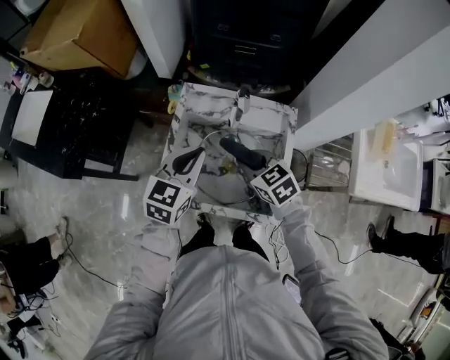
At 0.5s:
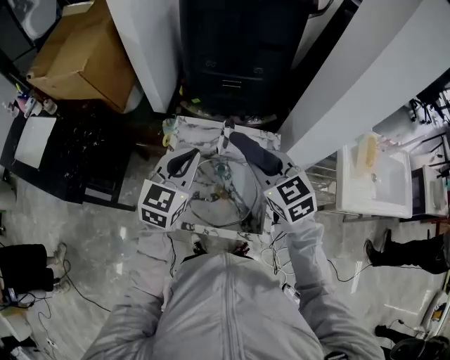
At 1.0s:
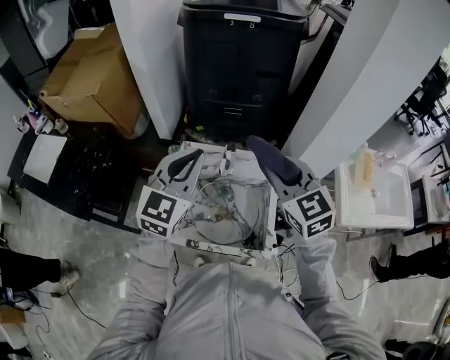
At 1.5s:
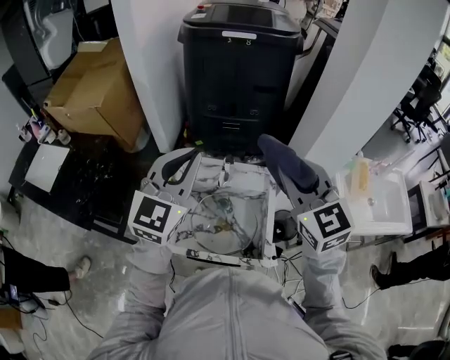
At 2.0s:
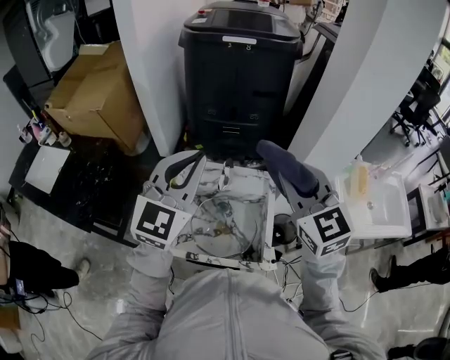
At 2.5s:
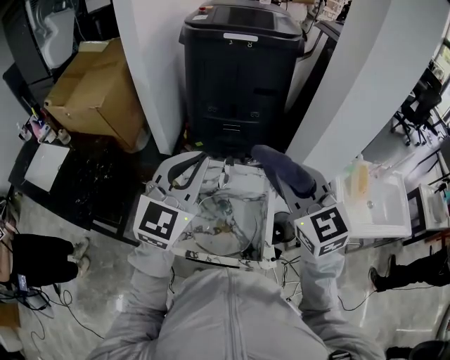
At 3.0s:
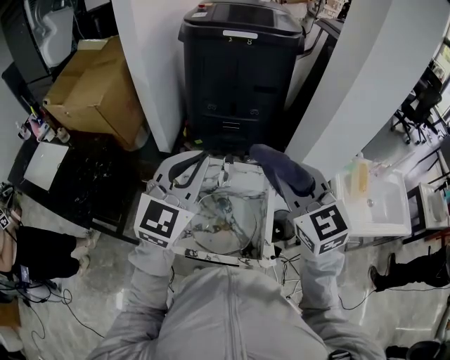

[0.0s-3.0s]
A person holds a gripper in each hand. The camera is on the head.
0.0s to 1.5s: Both grippers move upward, approximately 30 cm. The right gripper points its fingers some 30 degrees further upward, while the left gripper swivels approximately 30 degrees.
1.5s to 3.0s: There are only small adjustments of the grippers.

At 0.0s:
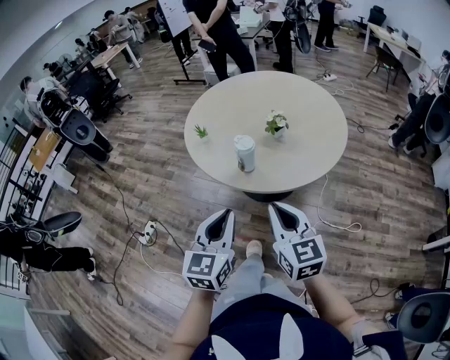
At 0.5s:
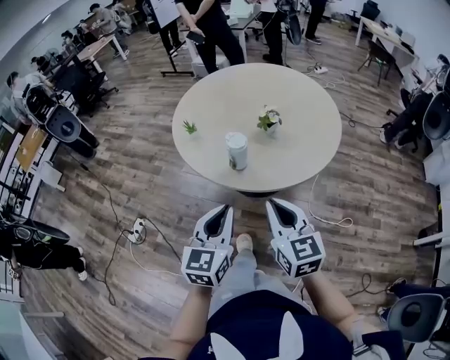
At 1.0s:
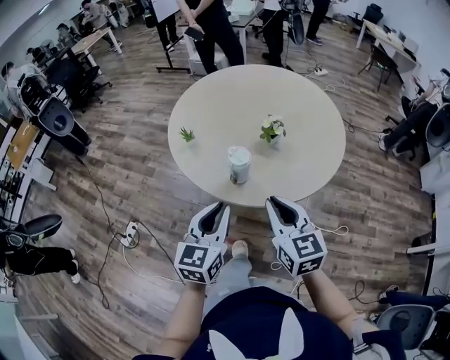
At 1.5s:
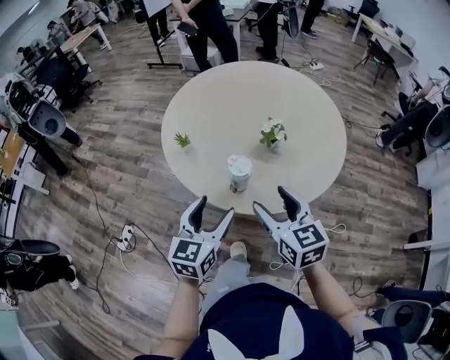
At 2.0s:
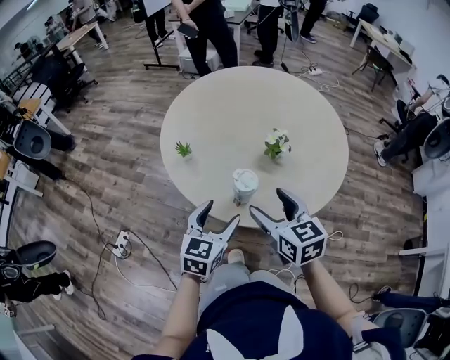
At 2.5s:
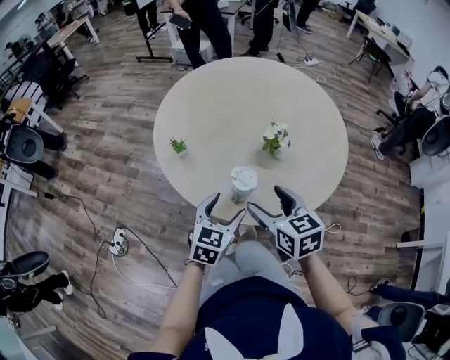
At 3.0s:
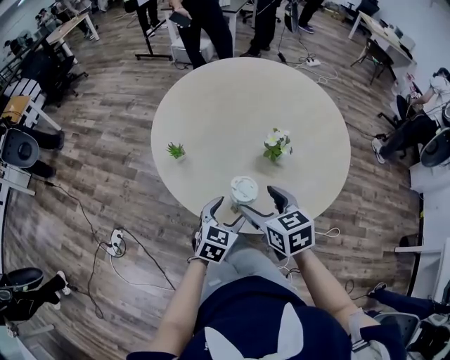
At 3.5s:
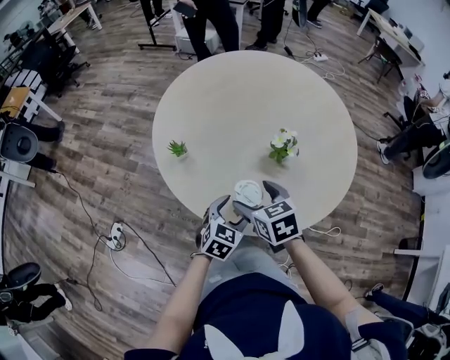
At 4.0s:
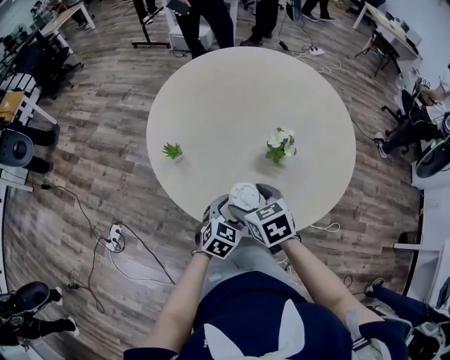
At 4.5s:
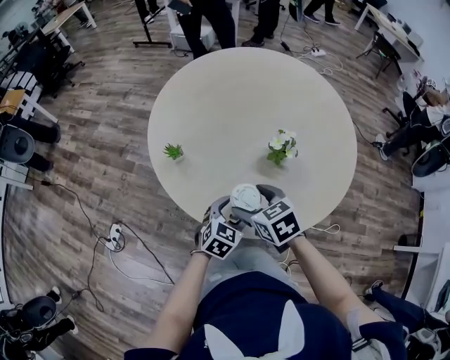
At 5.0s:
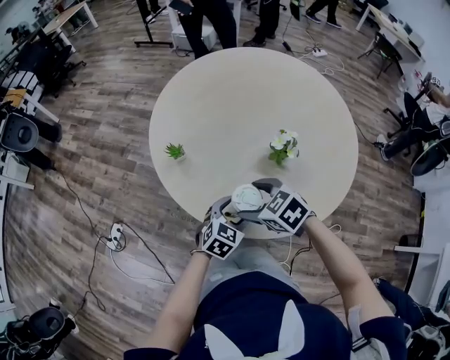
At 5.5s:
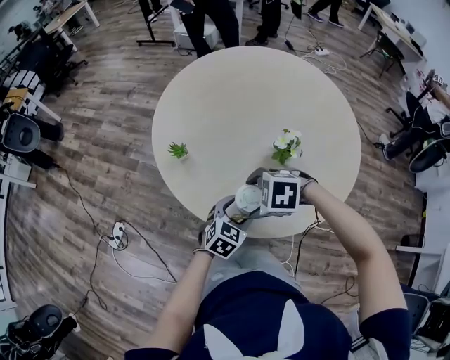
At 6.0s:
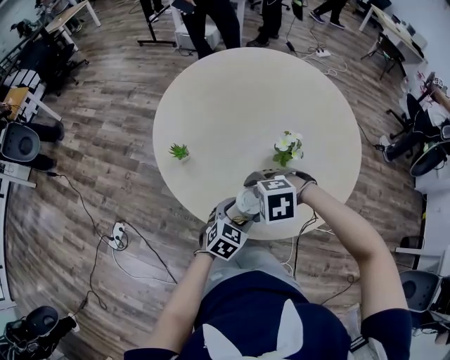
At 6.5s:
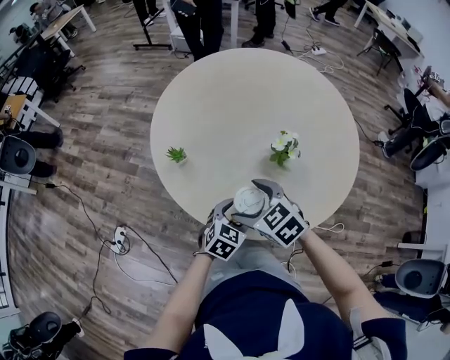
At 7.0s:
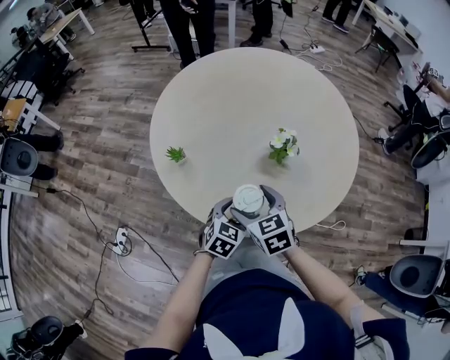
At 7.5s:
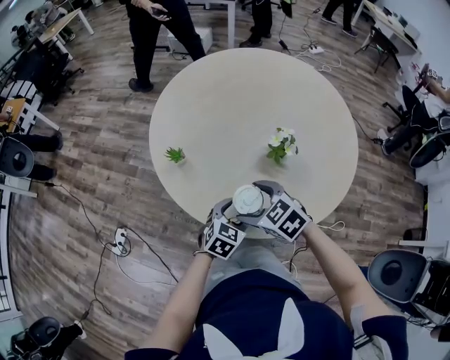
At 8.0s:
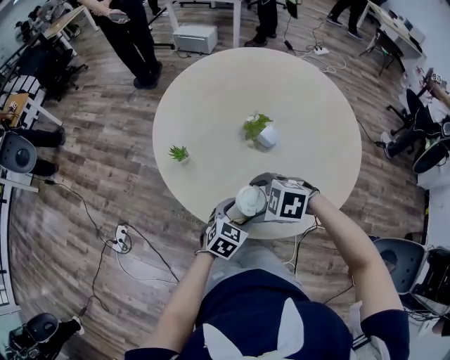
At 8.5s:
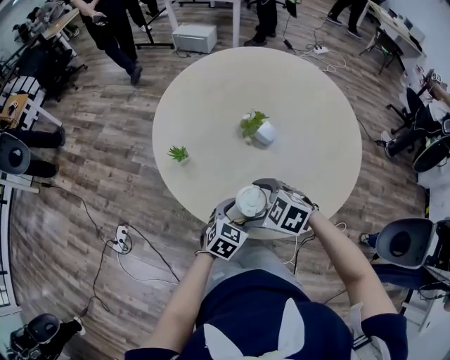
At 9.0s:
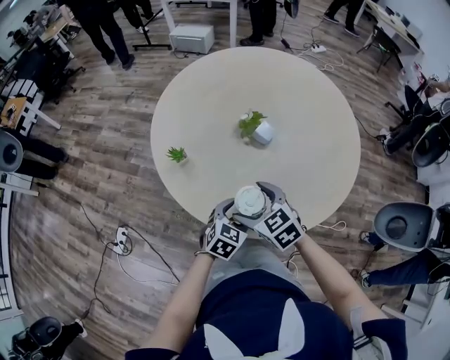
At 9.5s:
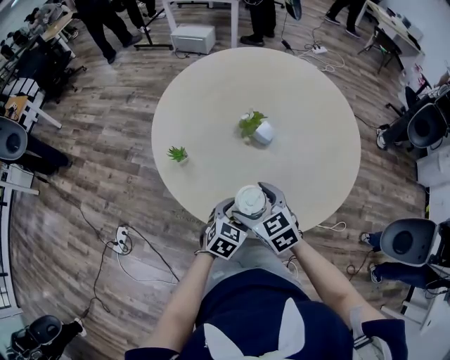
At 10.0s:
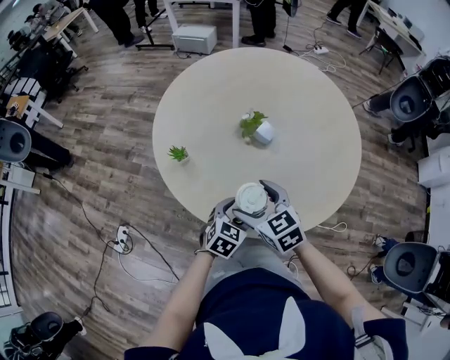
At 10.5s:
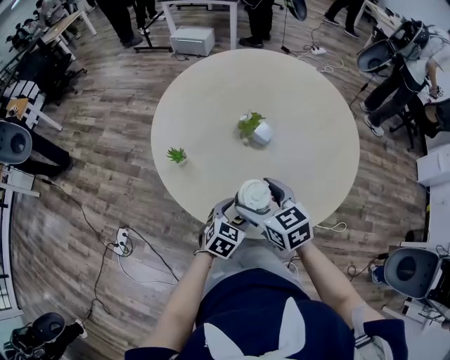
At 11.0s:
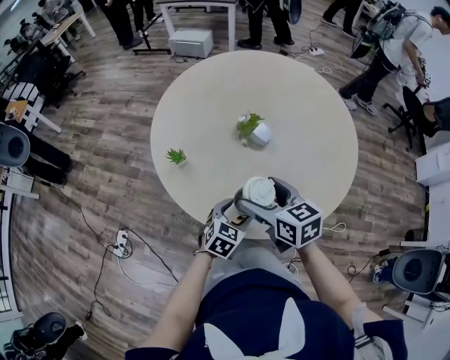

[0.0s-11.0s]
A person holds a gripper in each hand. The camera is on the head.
0.0s to 2.0s: The right gripper travels forward by some 25 cm, and opens, while the left gripper heads forward and downward, covering about 25 cm, and opens up.
2.0s to 3.5s: Both grippers travel together downward and forward, roughly 15 cm.
3.5s to 5.5s: The right gripper rotates some 70 degrees.
5.5s to 7.5s: The right gripper swivels about 40 degrees.
9.0s to 11.0s: The right gripper travels upward by roughly 5 cm, and changes its angle by some 30 degrees.

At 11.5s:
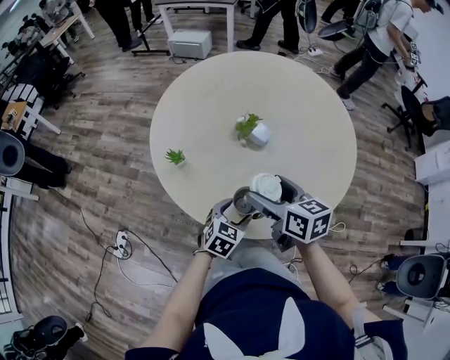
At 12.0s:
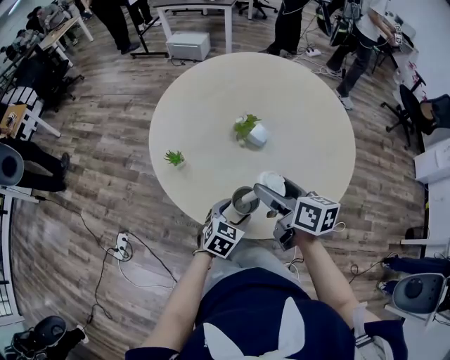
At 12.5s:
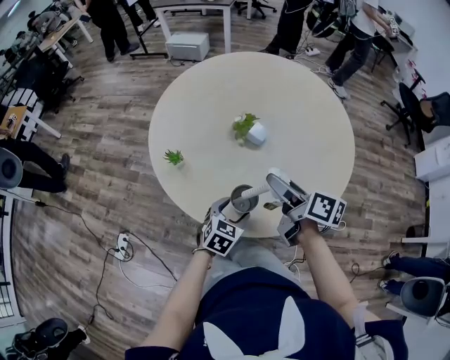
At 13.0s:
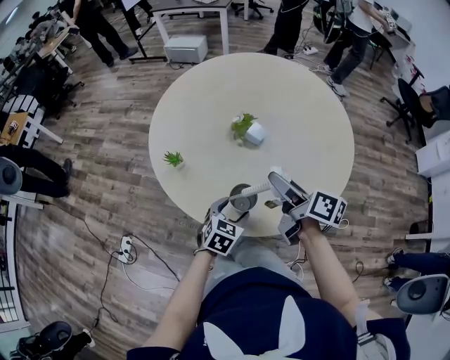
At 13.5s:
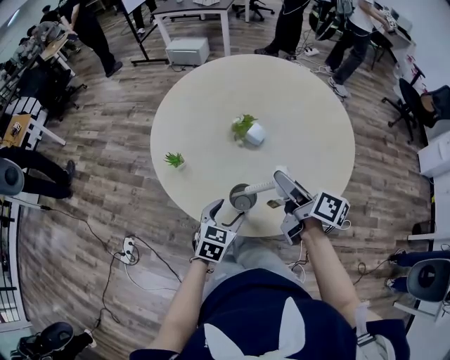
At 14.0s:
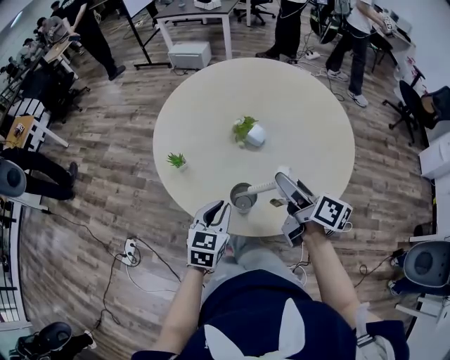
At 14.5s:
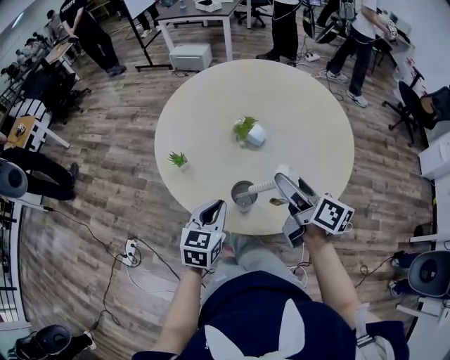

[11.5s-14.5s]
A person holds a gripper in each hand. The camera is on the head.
11.5s to 13.0s: The right gripper travels to the right by some 5 cm, and changes its angle by approximately 30 degrees.
13.0s to 14.5s: The left gripper travels upward and to the left by about 10 cm, changes its angle by approximately 20 degrees, and closes.

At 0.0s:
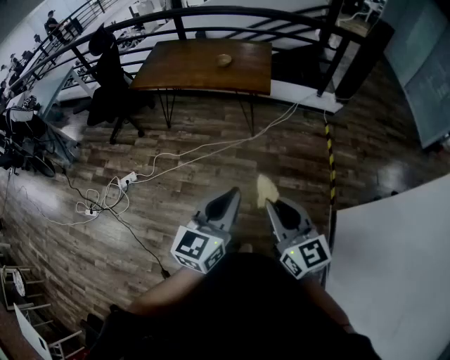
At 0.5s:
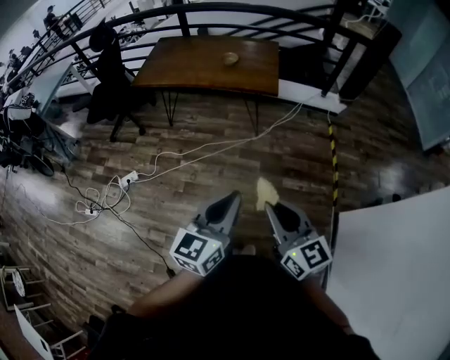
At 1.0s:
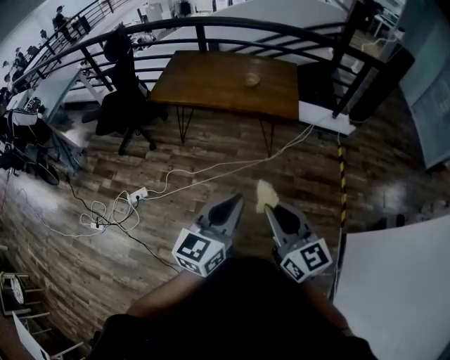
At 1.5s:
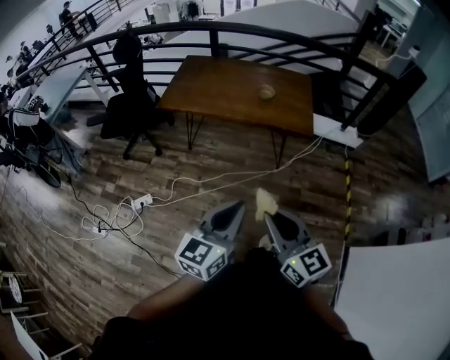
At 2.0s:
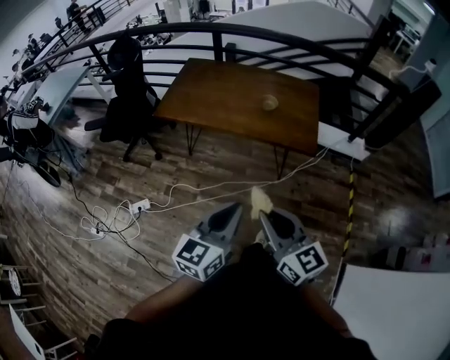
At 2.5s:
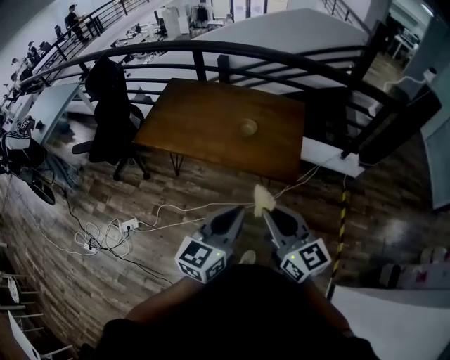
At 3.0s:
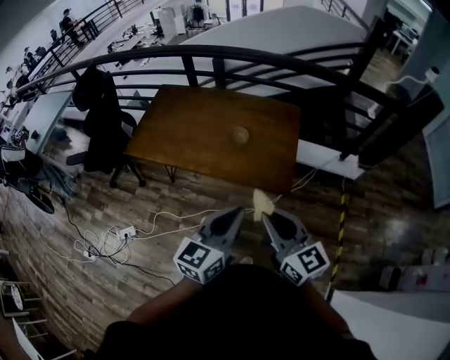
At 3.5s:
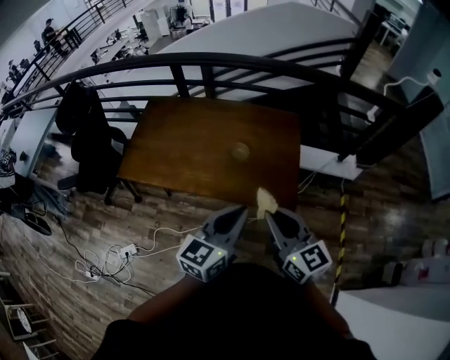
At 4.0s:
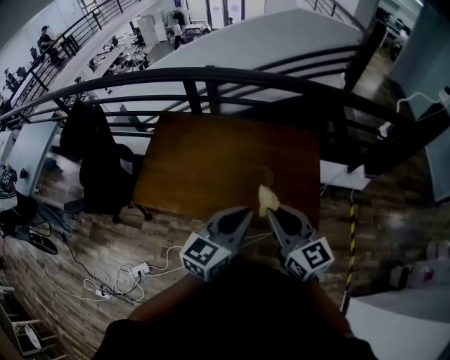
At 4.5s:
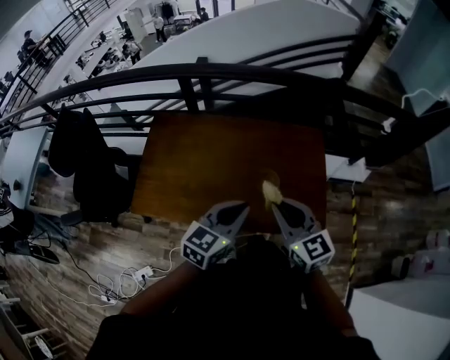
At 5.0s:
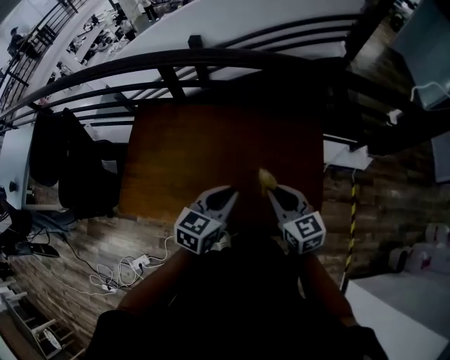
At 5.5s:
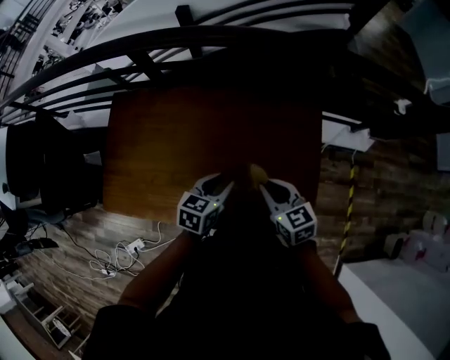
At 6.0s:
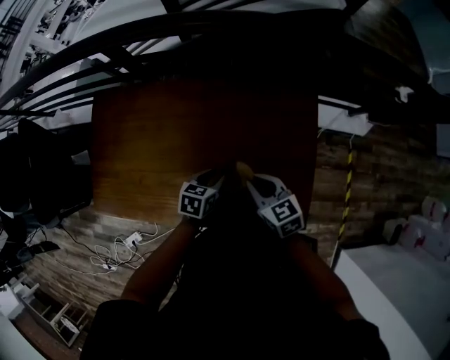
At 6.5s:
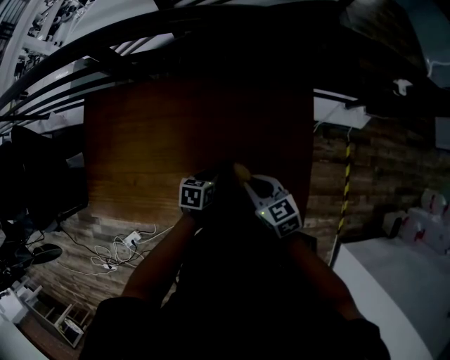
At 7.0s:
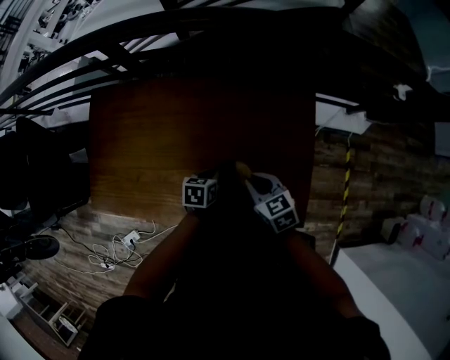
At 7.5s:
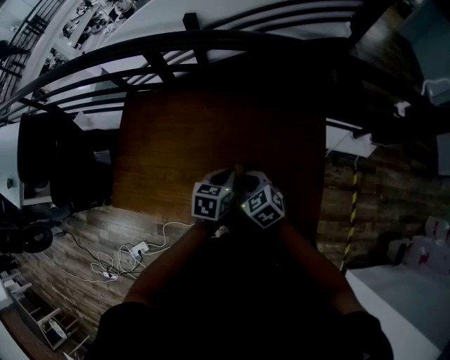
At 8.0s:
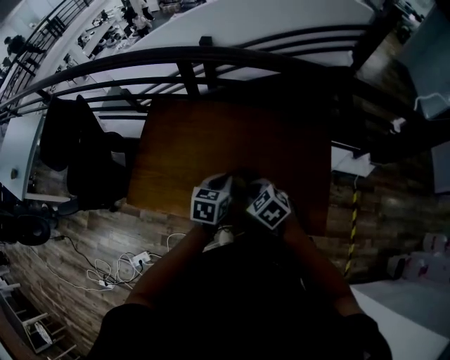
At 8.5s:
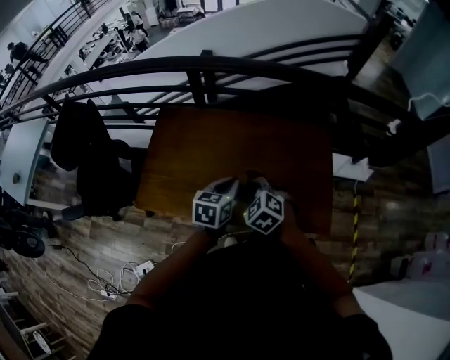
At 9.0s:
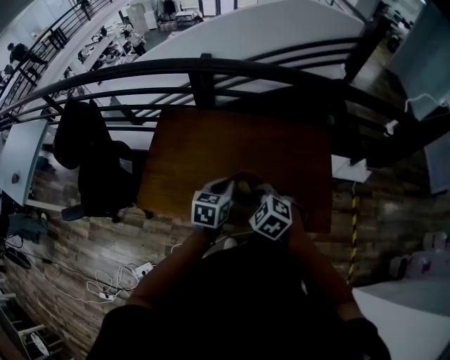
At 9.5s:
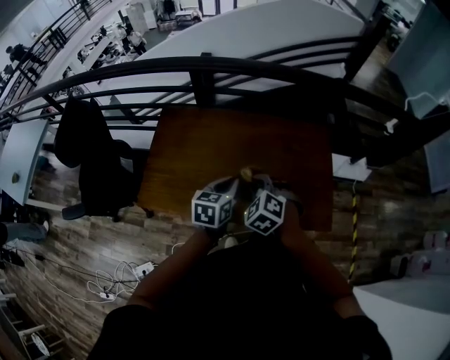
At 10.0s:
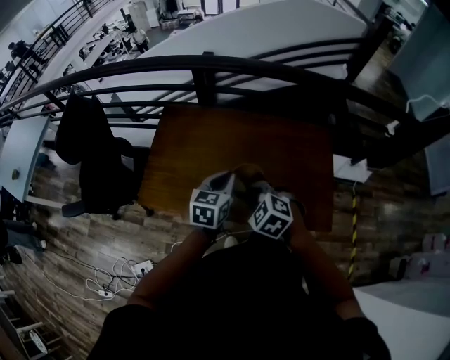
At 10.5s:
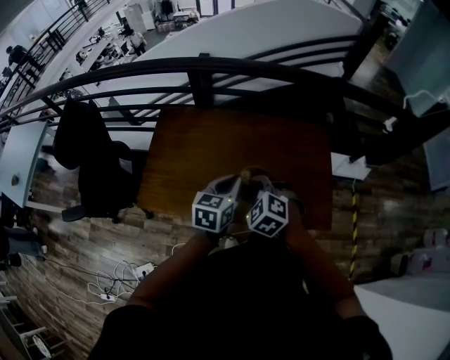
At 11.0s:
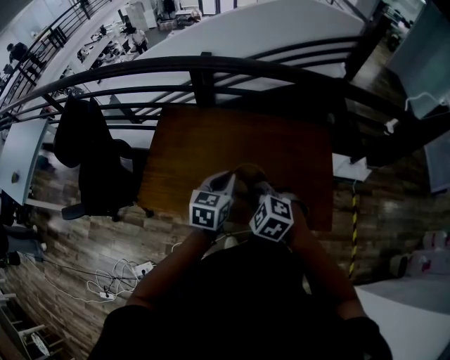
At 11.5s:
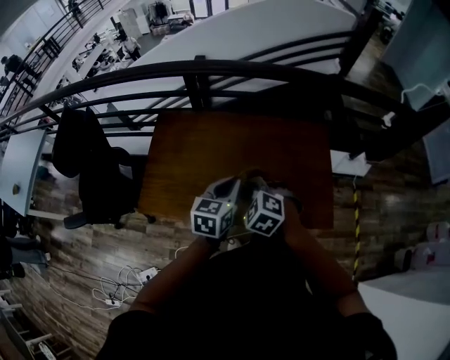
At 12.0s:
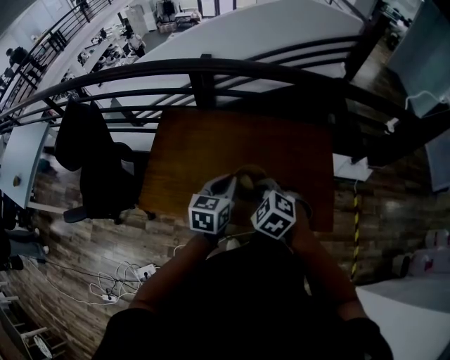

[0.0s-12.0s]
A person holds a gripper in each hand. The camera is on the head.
0.0s to 2.0s: The grippers both shift forward and to the left by about 40 cm.
2.0s to 4.0s: The pair of grippers is taken forward, some 50 cm.
4.0s to 6.0s: The two grippers go roughly 40 cm downward and forward. The left gripper angles its fingers downward, by some 40 degrees, and opens. Meanwhile the right gripper changes its angle by roughly 30 degrees.
6.0s to 8.0s: The right gripper travels to the left, backward and upward by roughly 20 cm, and changes its angle by some 30 degrees. Meanwhile the left gripper goes about 20 cm upward and to the left, turns by about 20 degrees, and closes.
8.0s to 10.0s: The right gripper shifts some 10 cm to the left, upward and backward. Meanwhile the left gripper is displaced upward and to the left by about 10 cm.
10.0s to 12.0s: There are only small adjustments of the grippers.
